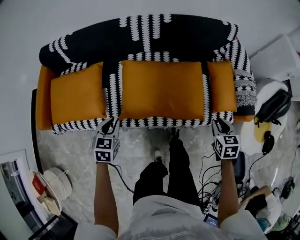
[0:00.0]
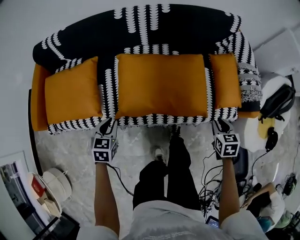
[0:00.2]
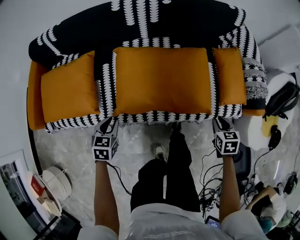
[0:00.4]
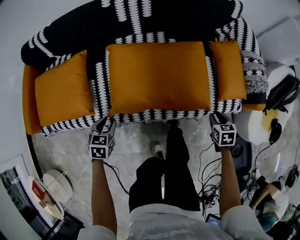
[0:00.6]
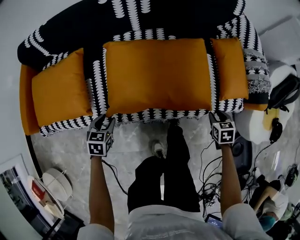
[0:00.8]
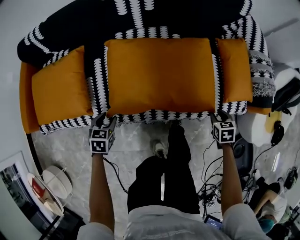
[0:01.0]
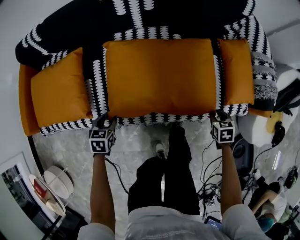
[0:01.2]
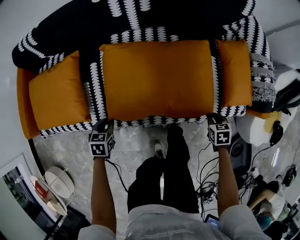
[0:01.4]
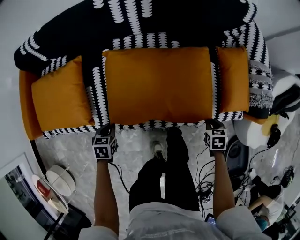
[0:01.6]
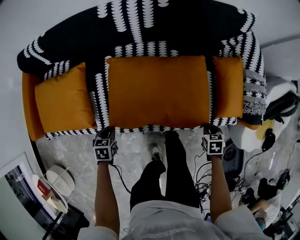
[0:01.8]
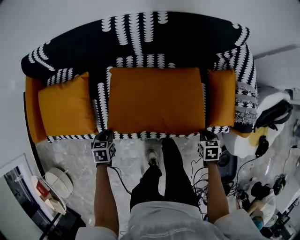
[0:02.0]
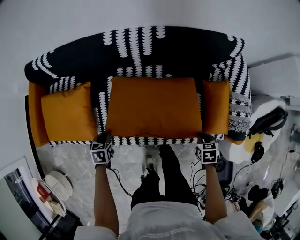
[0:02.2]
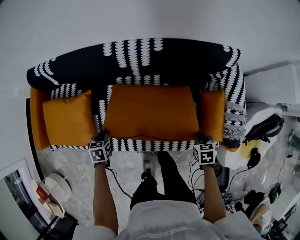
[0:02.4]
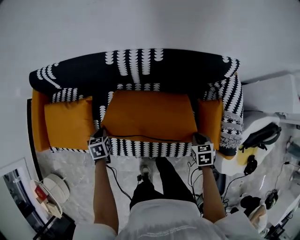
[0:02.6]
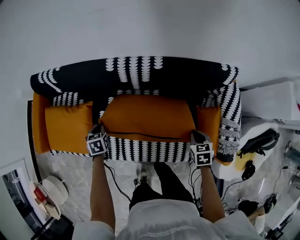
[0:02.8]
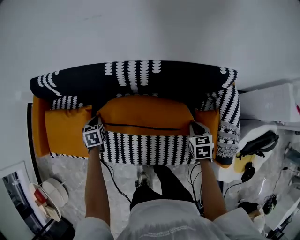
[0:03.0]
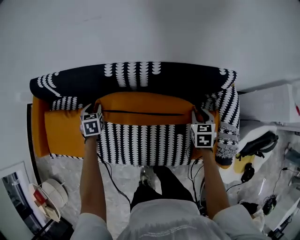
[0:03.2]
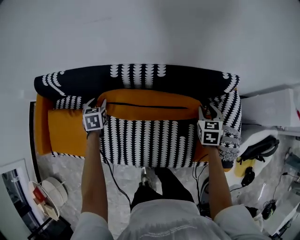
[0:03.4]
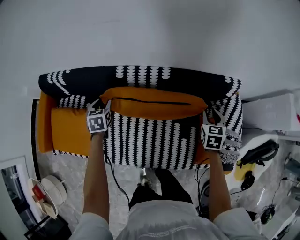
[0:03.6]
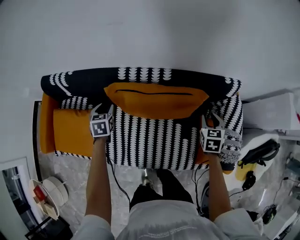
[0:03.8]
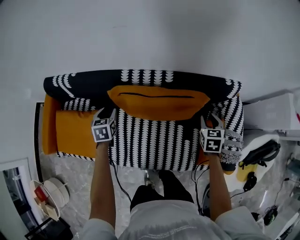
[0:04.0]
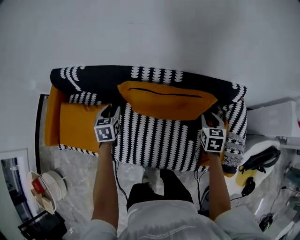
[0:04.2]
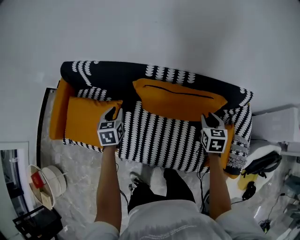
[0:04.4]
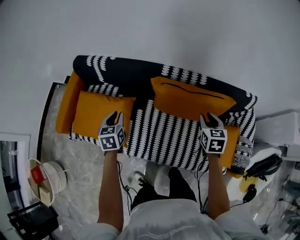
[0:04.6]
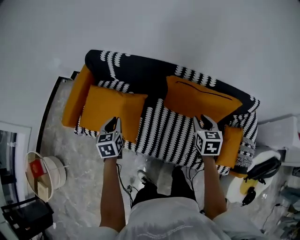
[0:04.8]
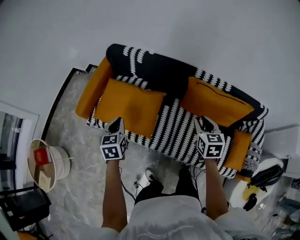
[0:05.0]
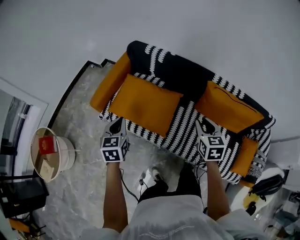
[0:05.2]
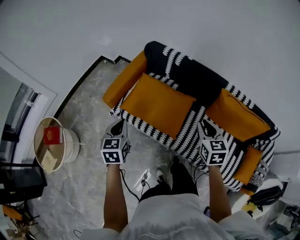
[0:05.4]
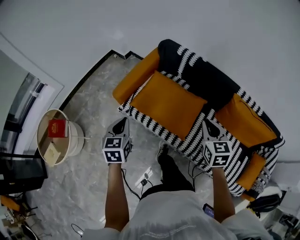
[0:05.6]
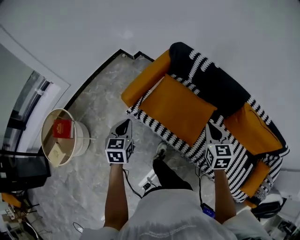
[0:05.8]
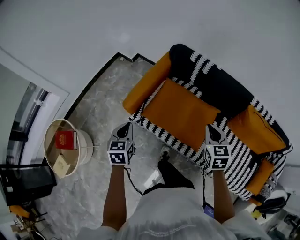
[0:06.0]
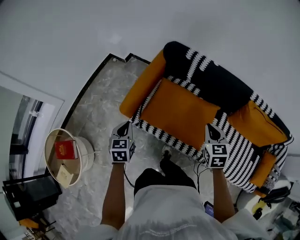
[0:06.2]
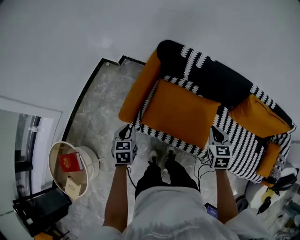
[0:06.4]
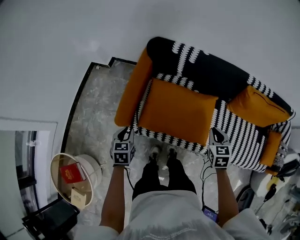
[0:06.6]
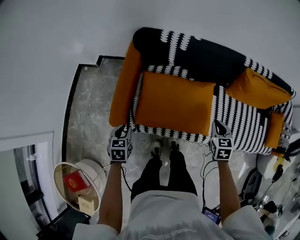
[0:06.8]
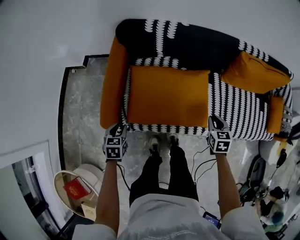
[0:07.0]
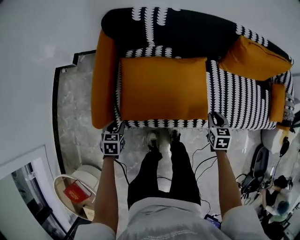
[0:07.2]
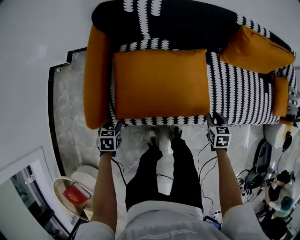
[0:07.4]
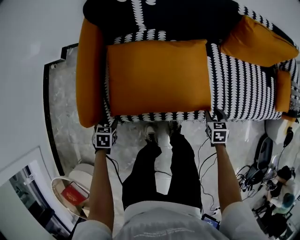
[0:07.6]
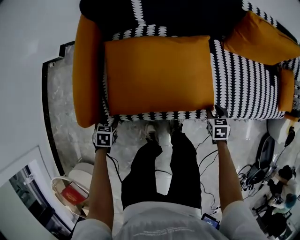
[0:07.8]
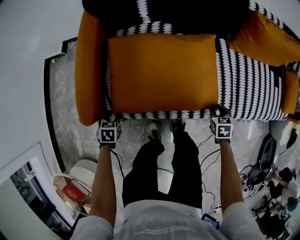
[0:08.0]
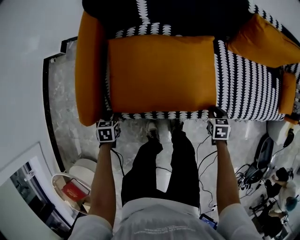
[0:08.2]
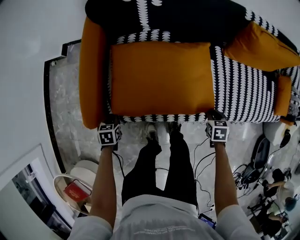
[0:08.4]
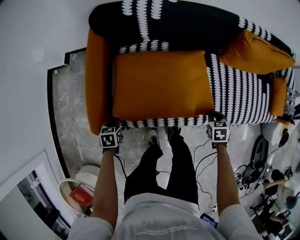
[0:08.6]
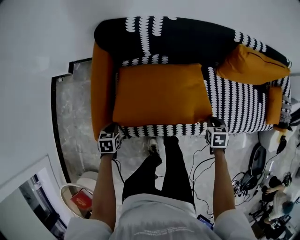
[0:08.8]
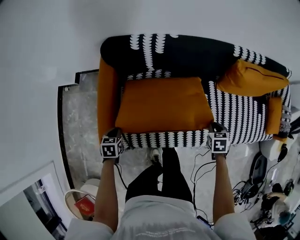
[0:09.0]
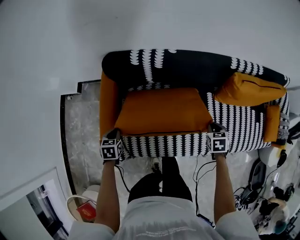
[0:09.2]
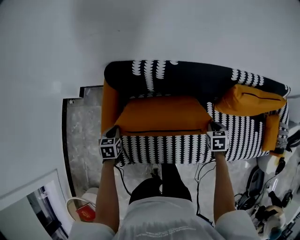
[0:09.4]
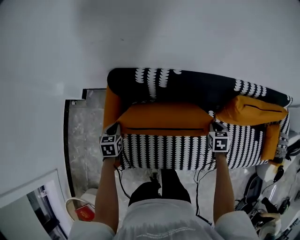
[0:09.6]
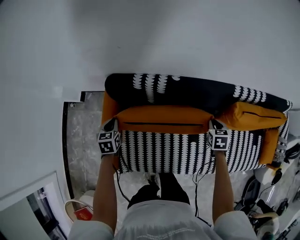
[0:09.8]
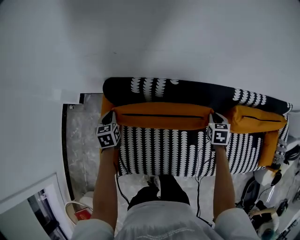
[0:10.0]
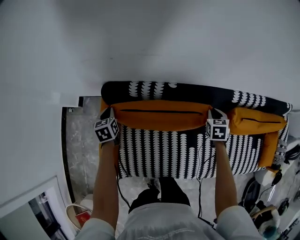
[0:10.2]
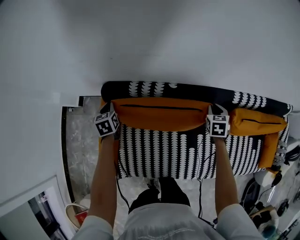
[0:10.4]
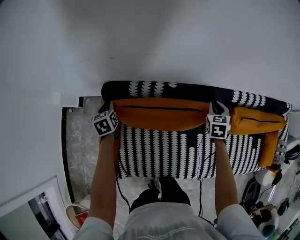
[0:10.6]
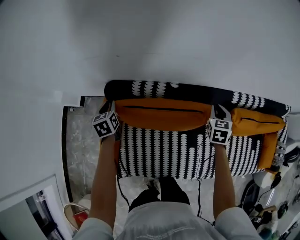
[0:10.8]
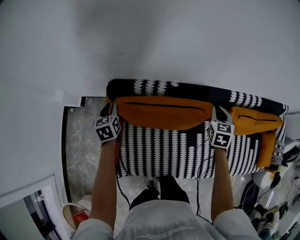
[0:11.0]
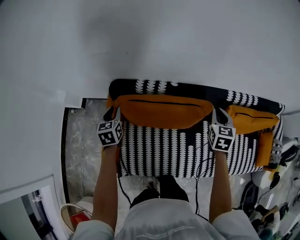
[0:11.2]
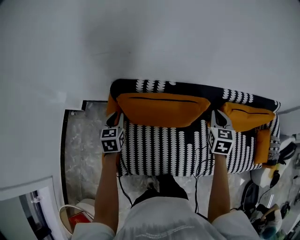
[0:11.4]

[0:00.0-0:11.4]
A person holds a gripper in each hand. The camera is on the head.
0:00.0 to 0:01.4: Both grippers travel together downward, approximately 20 cm. The left gripper opens, then closes again.
0:01.4 to 0:02.8: The grippers both shift forward and upward by some 30 cm. The left gripper turns by some 20 degrees.
0:02.8 to 0:04.2: The right gripper goes approximately 20 cm forward and upward, and opens up; the left gripper moves upward and forward, roughly 15 cm, and opens.
0:04.2 to 0:05.6: The two grippers travel together, about 60 cm. The right gripper turns by approximately 40 degrees, and closes; the left gripper swivels approximately 30 degrees, and closes up.
0:05.6 to 0:07.2: Both grippers move downward, approximately 35 cm. The right gripper swivels approximately 50 degrees. The left gripper tilts its fingers roughly 30 degrees downward, and opens.
0:07.2 to 0:08.6: The two grippers go roughly 5 cm downward. The left gripper closes.
0:08.6 to 0:10.0: The right gripper heads forward, covering some 40 cm, while the left gripper travels forward and upward by approximately 40 cm, and changes its angle by some 20 degrees.
0:10.0 to 0:11.4: The right gripper travels upward by some 20 cm, and changes its angle by roughly 20 degrees; the left gripper shifts about 15 cm upward and backward.

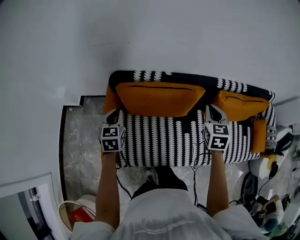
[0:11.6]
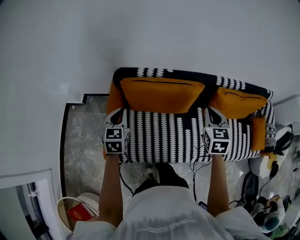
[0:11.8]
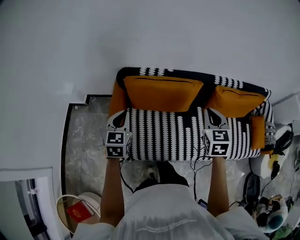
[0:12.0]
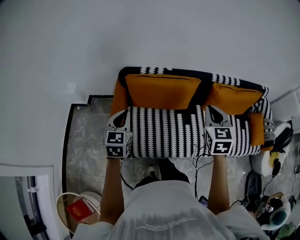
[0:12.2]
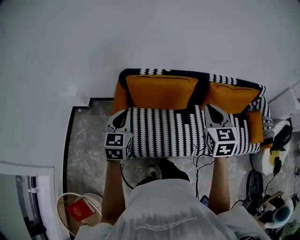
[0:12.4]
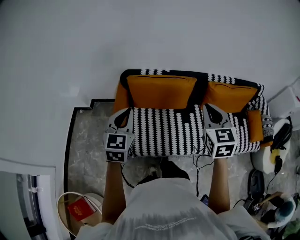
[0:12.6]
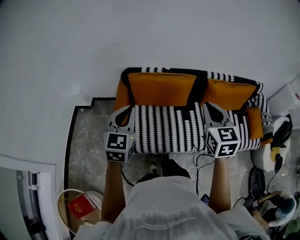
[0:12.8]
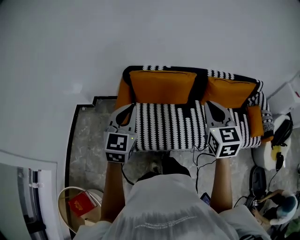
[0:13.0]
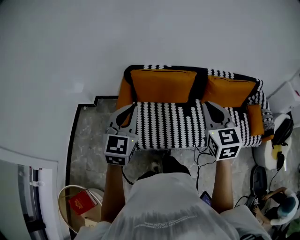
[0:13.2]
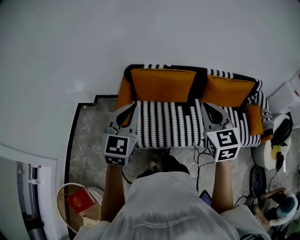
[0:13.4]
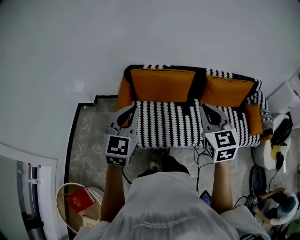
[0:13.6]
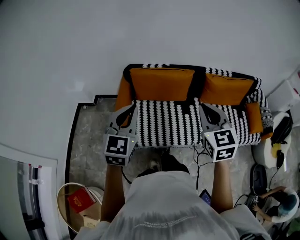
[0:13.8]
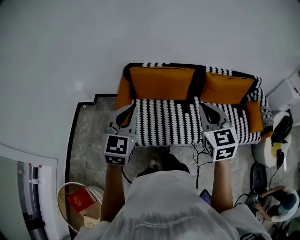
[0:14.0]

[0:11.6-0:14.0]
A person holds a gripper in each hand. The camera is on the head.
0:11.6 to 0:12.8: The grippers both shift backward and upward by about 35 cm. The left gripper changes its angle by some 30 degrees.
0:12.8 to 0:14.0: Both grippers move backward, about 10 cm.

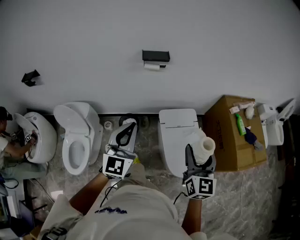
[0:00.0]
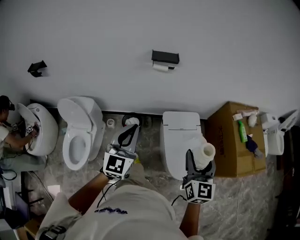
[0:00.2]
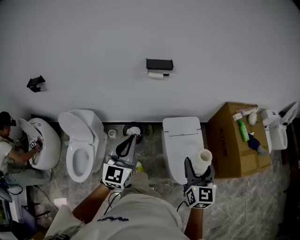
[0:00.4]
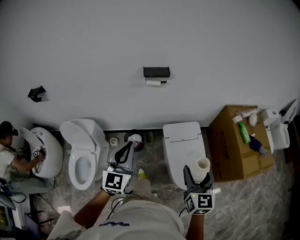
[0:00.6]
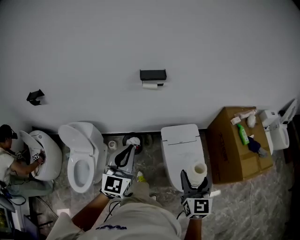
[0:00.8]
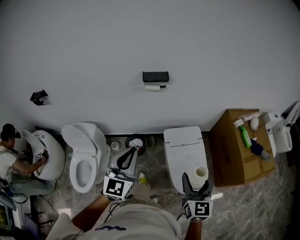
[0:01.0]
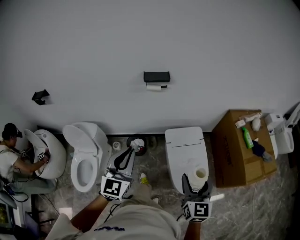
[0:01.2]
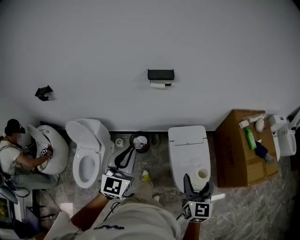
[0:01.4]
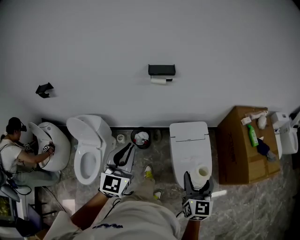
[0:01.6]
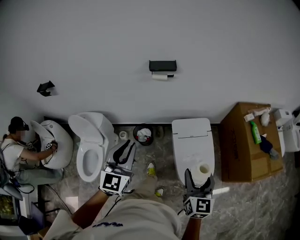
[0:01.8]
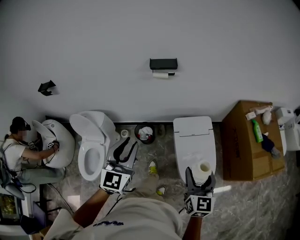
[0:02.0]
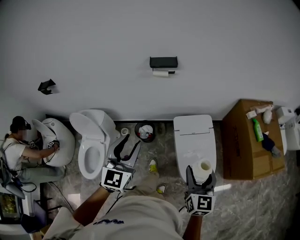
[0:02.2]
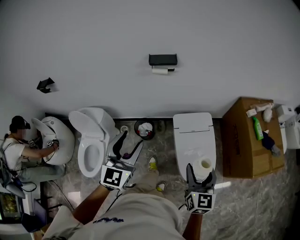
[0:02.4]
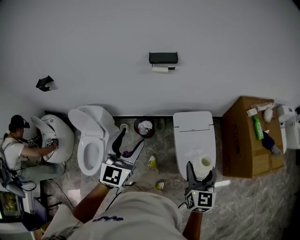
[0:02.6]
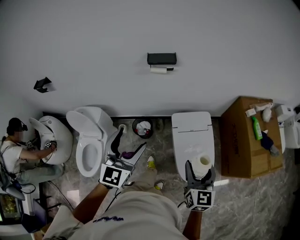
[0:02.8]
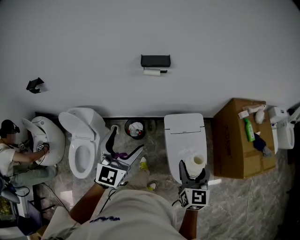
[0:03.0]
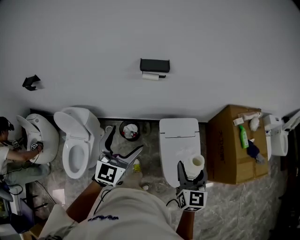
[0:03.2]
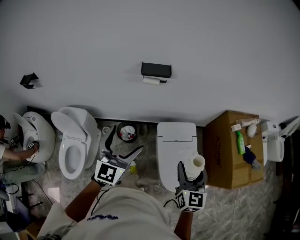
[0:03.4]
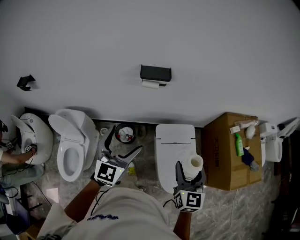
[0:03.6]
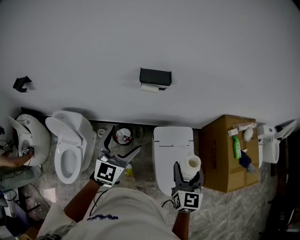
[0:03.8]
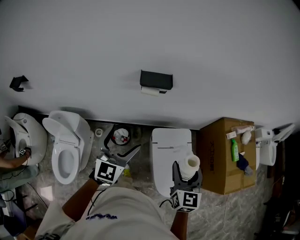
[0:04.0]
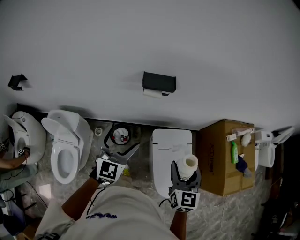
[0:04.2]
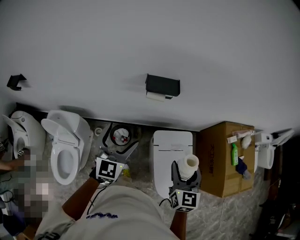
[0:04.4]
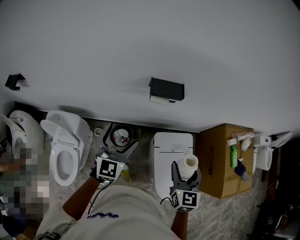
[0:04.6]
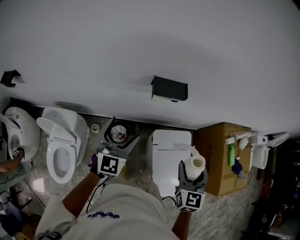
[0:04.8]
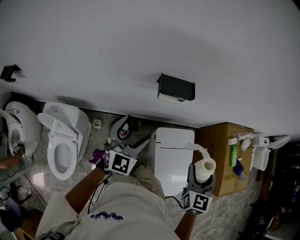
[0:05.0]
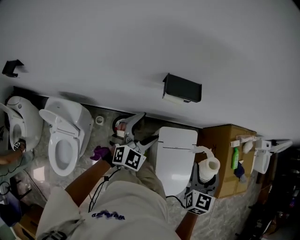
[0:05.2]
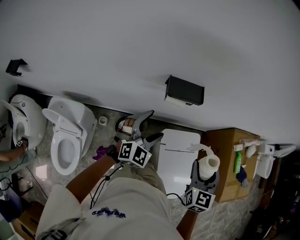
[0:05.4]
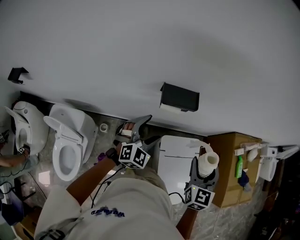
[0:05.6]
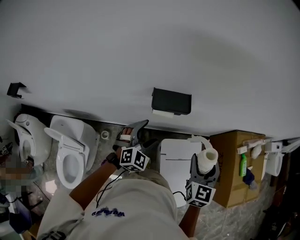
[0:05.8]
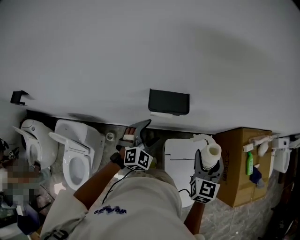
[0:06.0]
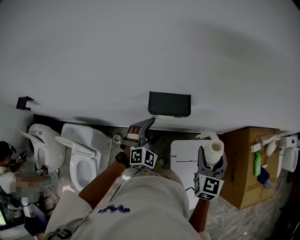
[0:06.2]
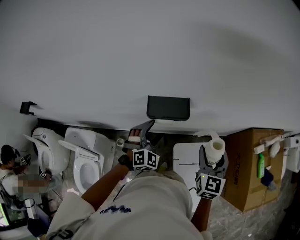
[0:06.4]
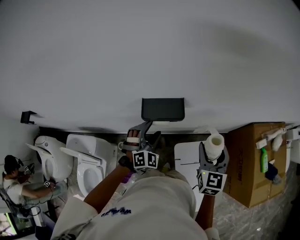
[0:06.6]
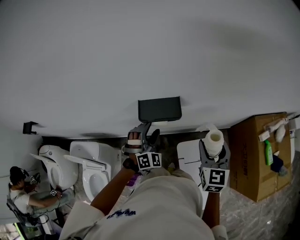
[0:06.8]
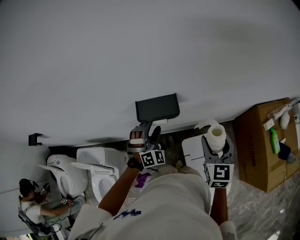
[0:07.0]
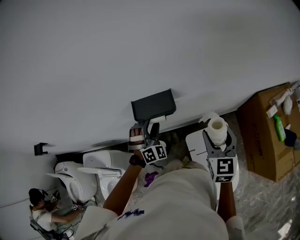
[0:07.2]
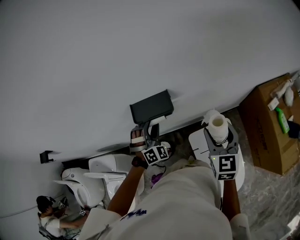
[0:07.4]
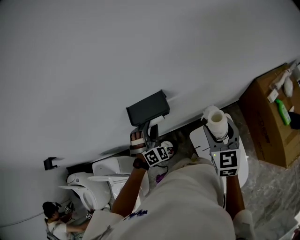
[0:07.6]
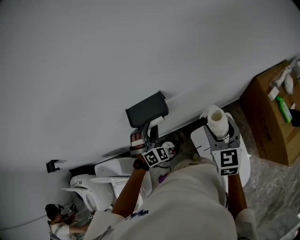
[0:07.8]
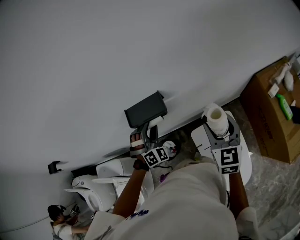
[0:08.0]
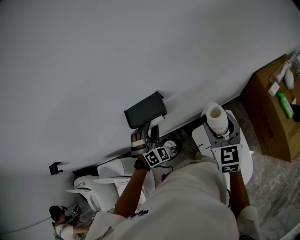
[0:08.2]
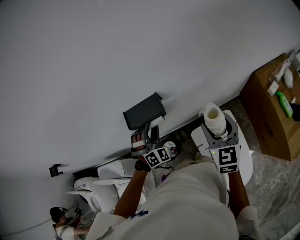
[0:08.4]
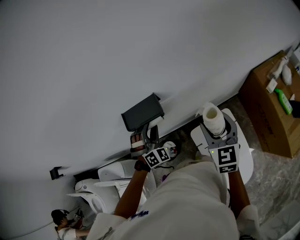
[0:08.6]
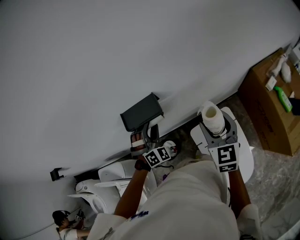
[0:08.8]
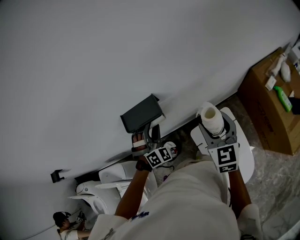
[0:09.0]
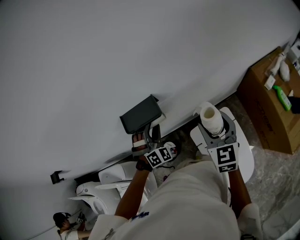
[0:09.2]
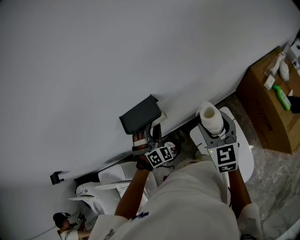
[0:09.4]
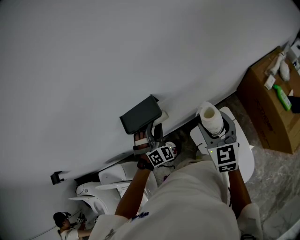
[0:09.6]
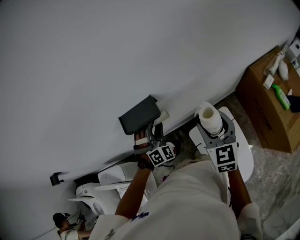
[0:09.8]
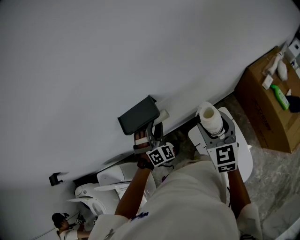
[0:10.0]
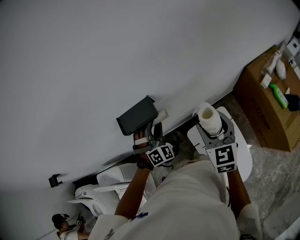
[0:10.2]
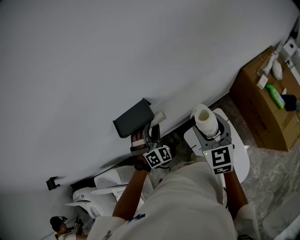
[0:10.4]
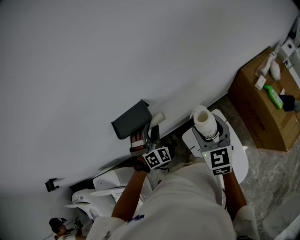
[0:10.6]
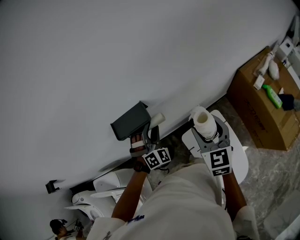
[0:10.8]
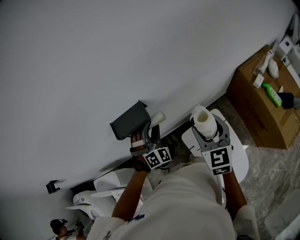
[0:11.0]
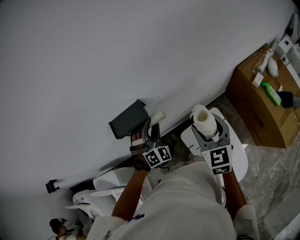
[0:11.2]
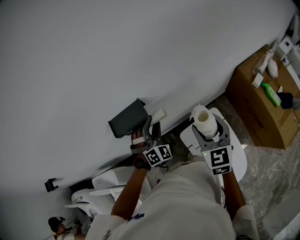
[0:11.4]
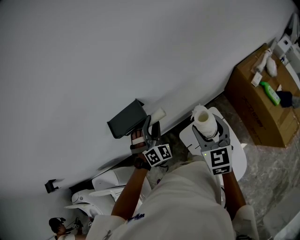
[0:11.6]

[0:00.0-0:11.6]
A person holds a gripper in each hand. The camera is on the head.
0:00.0 to 0:01.4: The right gripper moves downward, roughly 5 cm.
0:01.4 to 0:02.8: The left gripper opens up.
0:02.8 to 0:04.4: Both grippers move forward and to the left, some 20 cm.
0:04.4 to 0:05.8: The right gripper shifts some 15 cm forward. The left gripper travels forward and downward by about 20 cm, and changes its angle by roughly 40 degrees.
0:05.8 to 0:07.2: Both grippers travel together forward, approximately 10 cm. The left gripper turns by approximately 30 degrees.
0:07.2 to 0:08.8: The grippers stay close to where they were, moving slightly.
0:08.8 to 0:10.2: The grippers stay close to where they were, moving slightly.
0:10.2 to 0:11.6: The grippers stay close to where they were, moving slightly.
